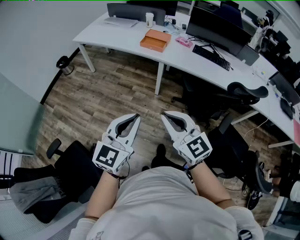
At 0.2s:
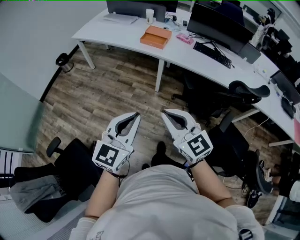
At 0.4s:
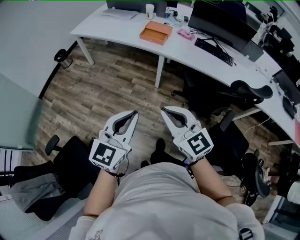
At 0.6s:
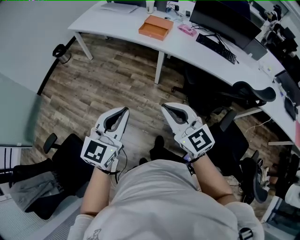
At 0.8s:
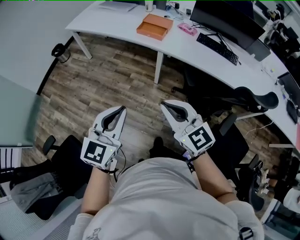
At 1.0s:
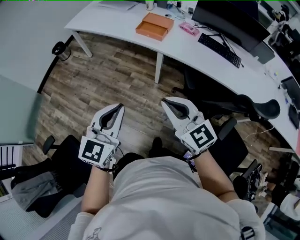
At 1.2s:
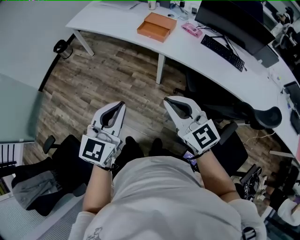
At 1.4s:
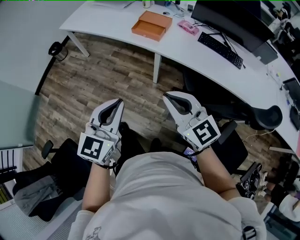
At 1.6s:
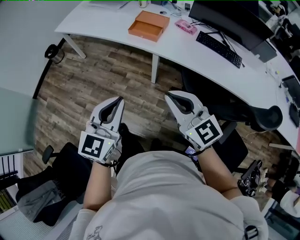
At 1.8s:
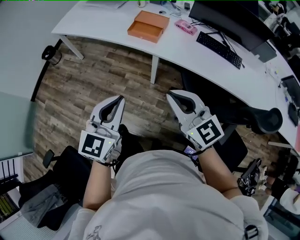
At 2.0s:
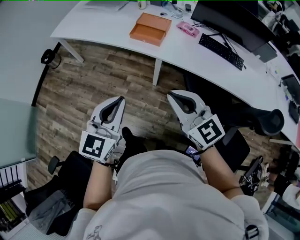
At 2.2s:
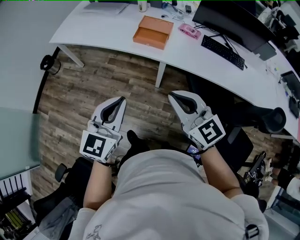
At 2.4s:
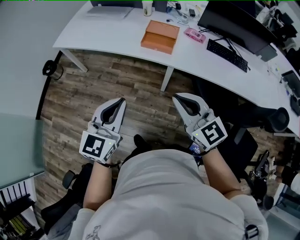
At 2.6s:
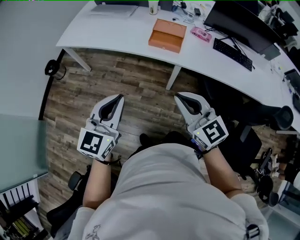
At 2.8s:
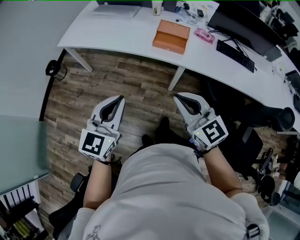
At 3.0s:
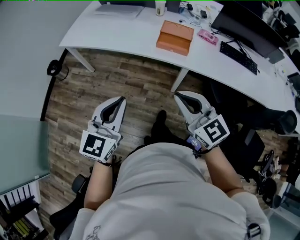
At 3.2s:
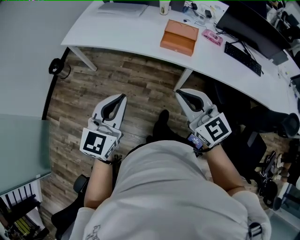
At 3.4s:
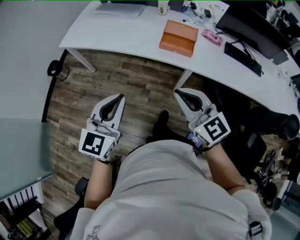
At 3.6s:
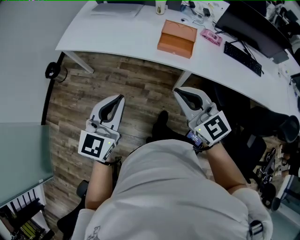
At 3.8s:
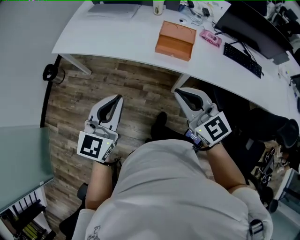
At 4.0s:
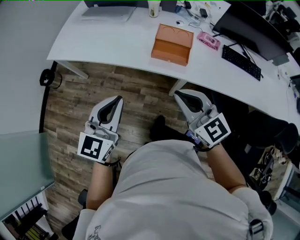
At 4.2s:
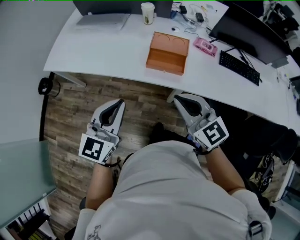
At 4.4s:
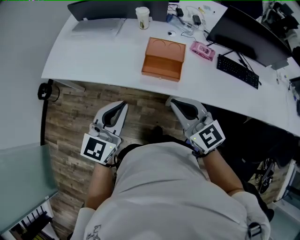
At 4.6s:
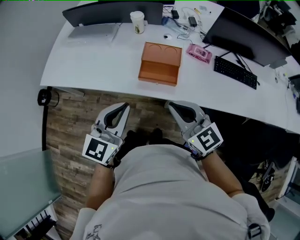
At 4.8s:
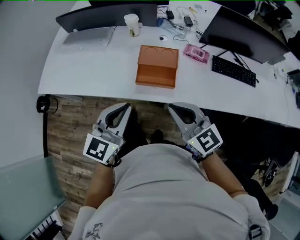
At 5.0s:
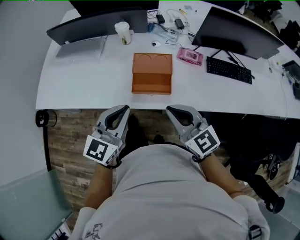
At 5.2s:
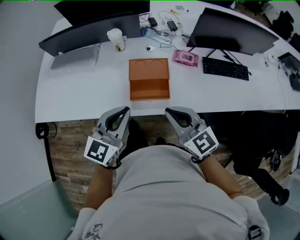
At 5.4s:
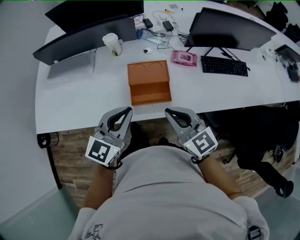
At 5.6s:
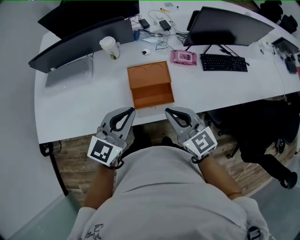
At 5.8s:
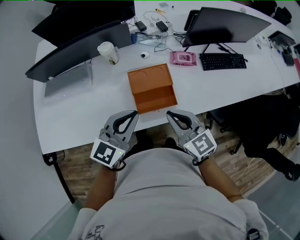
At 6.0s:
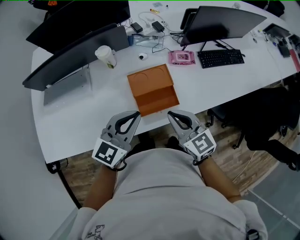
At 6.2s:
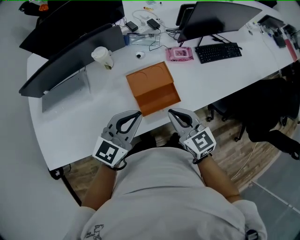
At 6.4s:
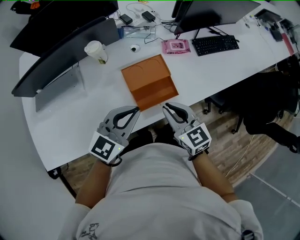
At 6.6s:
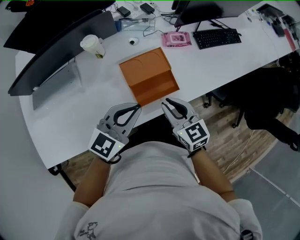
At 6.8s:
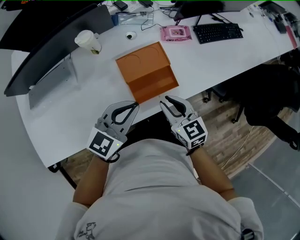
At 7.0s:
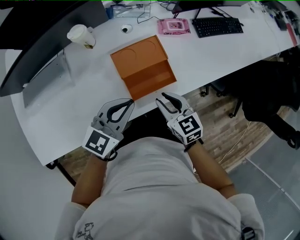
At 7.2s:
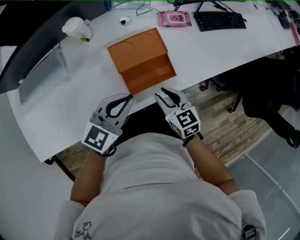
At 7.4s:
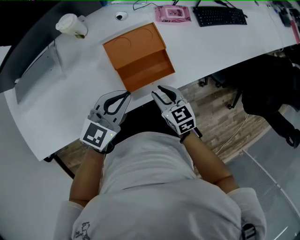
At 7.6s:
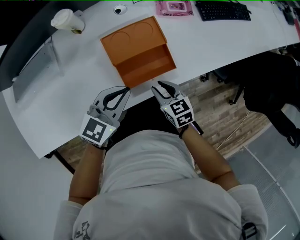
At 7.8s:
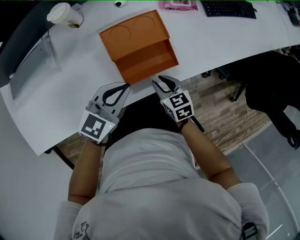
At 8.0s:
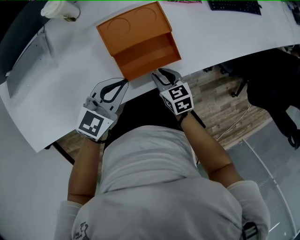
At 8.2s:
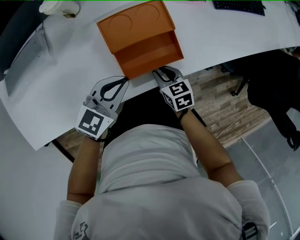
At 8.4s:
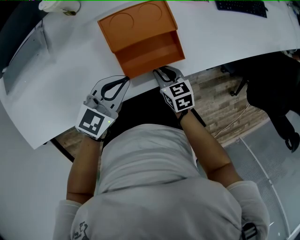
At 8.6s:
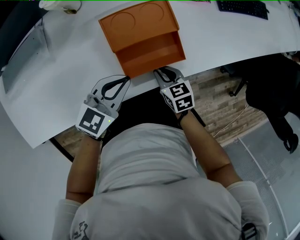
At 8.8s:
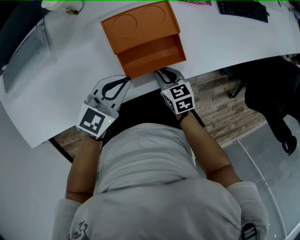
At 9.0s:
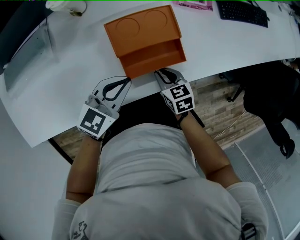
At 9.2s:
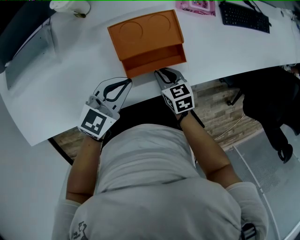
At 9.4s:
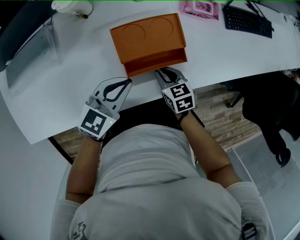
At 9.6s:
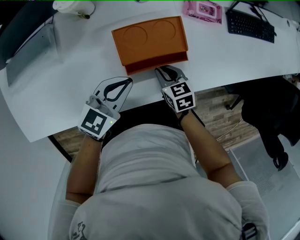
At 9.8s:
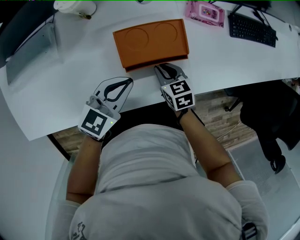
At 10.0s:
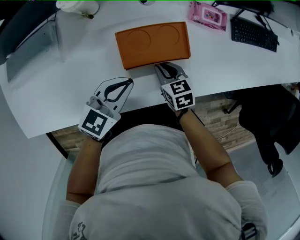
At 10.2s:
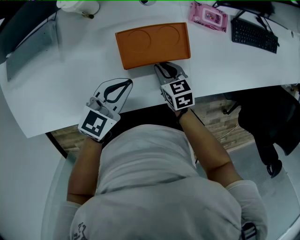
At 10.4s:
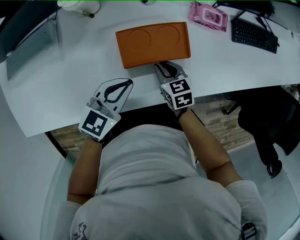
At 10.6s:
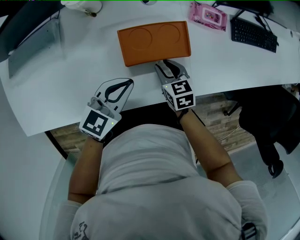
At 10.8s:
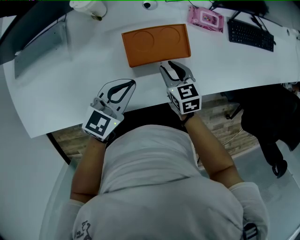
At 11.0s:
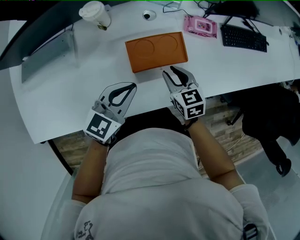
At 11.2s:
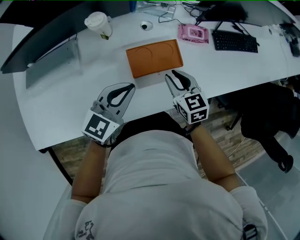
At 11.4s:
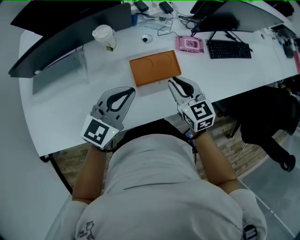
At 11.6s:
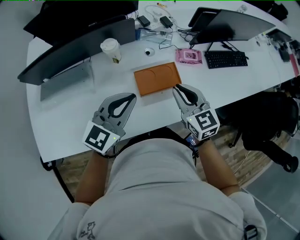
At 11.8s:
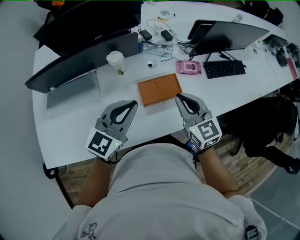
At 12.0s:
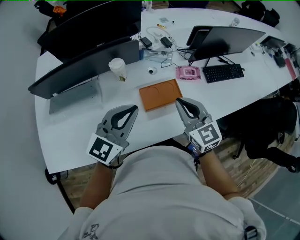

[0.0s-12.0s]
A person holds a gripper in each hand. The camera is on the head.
0.0s to 1.6s: The left gripper heads forward, covering some 30 cm. Meanwhile the right gripper goes roughly 35 cm forward and to the right.
1.6s to 3.0s: The two grippers go some 30 cm to the left and forward.
3.0s to 4.4s: The left gripper travels forward and to the right by about 30 cm, while the right gripper goes about 25 cm forward.
4.4s to 6.0s: The right gripper changes place by about 20 cm, and swivels about 30 degrees. Meanwhile the left gripper changes place by some 25 cm, and turns by roughly 40 degrees.
6.0s to 7.6s: The grippers both shift downward by about 20 cm. The right gripper swivels about 30 degrees, and opens.
7.6s to 9.0s: The grippers both shift downward by about 5 cm.
9.0s to 10.4s: The left gripper shifts some 5 cm forward. The right gripper travels forward by some 10 cm.
10.4s to 12.0s: The grippers both shift upward by some 35 cm. The right gripper angles its fingers upward, by about 40 degrees. Meanwhile the left gripper changes its angle by approximately 30 degrees.

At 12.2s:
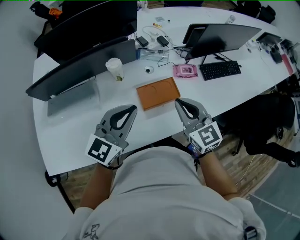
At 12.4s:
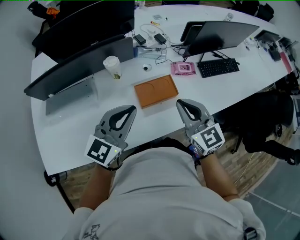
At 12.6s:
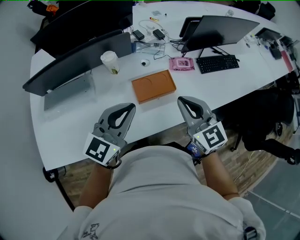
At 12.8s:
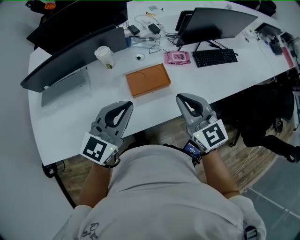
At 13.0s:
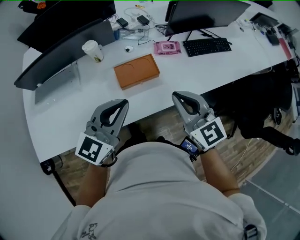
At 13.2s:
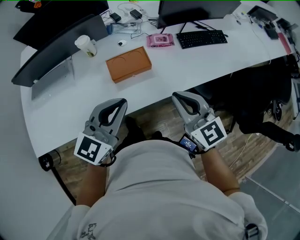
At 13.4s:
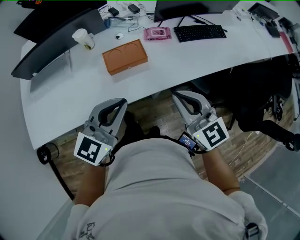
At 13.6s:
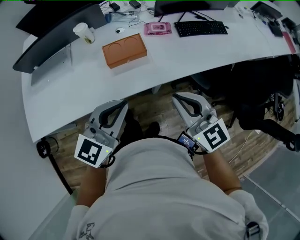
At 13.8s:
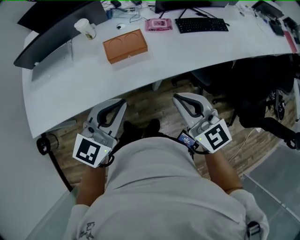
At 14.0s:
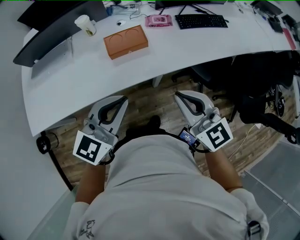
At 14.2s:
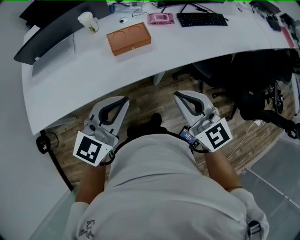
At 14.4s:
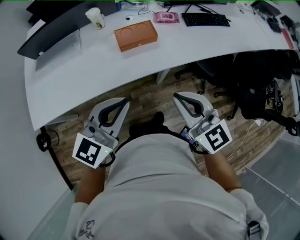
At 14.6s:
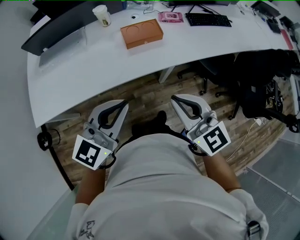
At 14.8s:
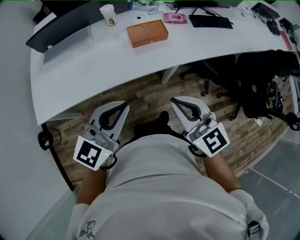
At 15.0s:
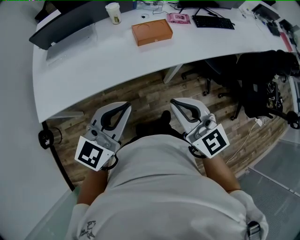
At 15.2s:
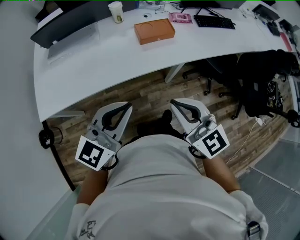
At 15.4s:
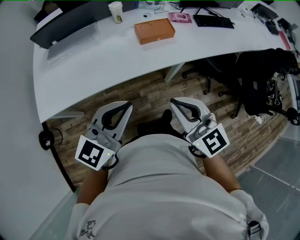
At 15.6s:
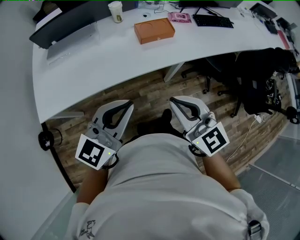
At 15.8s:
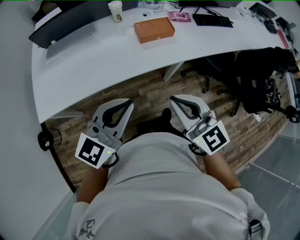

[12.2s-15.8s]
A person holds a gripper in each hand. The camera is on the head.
12.2s to 14.0s: Both grippers travel together backward and to the right, some 30 cm.
14.0s to 15.8s: Both grippers move to the left and backward, about 30 cm.

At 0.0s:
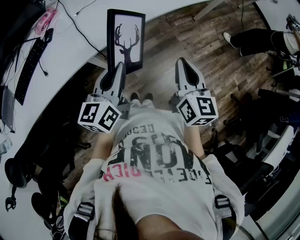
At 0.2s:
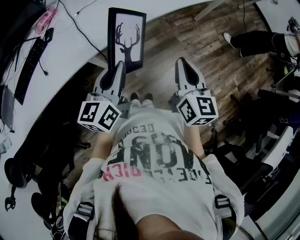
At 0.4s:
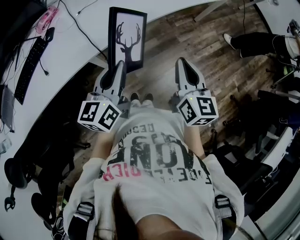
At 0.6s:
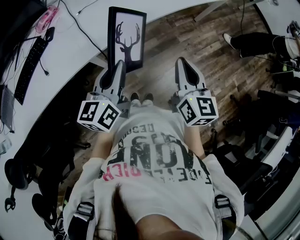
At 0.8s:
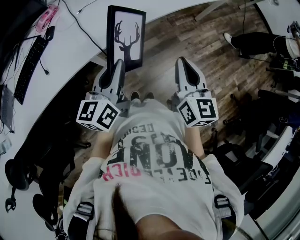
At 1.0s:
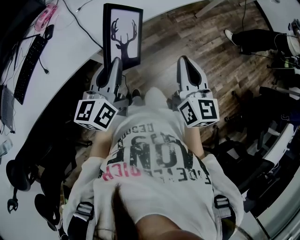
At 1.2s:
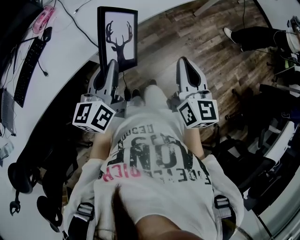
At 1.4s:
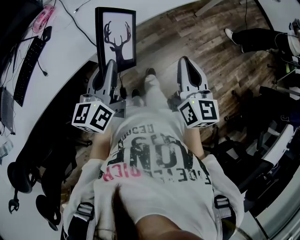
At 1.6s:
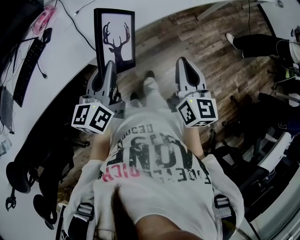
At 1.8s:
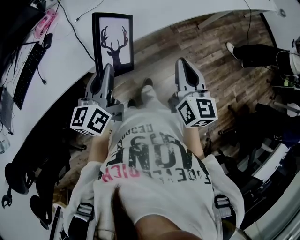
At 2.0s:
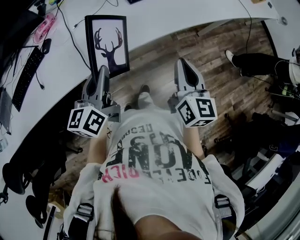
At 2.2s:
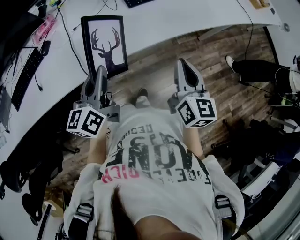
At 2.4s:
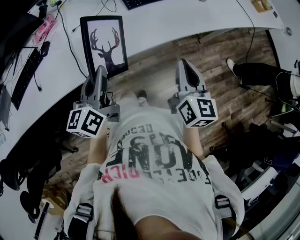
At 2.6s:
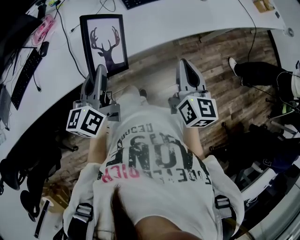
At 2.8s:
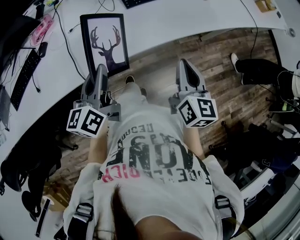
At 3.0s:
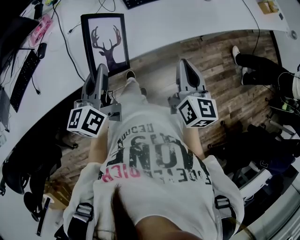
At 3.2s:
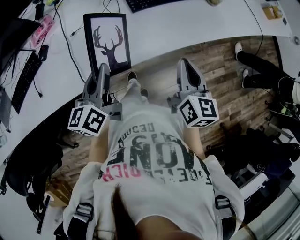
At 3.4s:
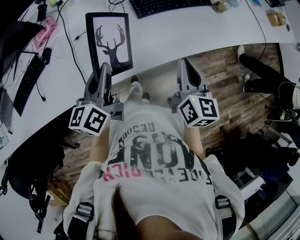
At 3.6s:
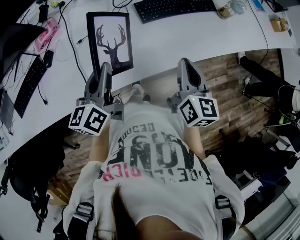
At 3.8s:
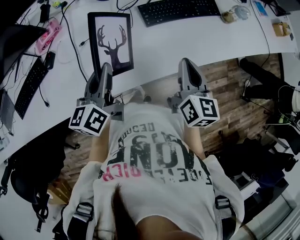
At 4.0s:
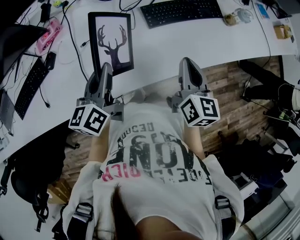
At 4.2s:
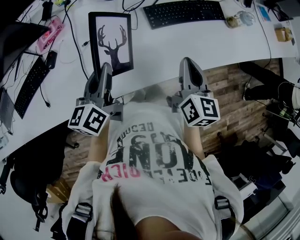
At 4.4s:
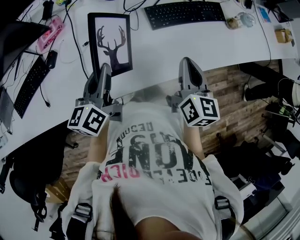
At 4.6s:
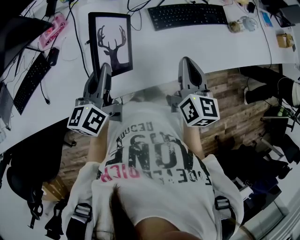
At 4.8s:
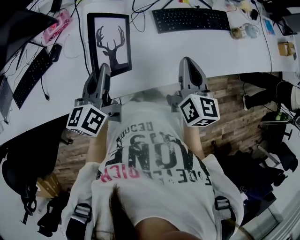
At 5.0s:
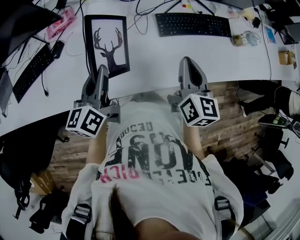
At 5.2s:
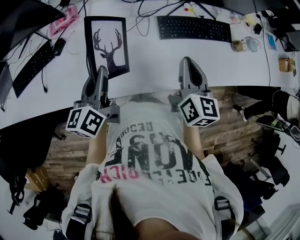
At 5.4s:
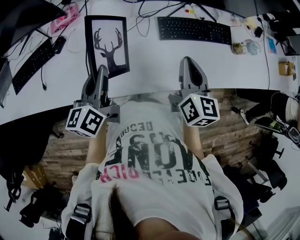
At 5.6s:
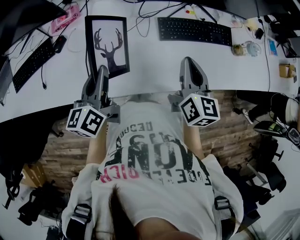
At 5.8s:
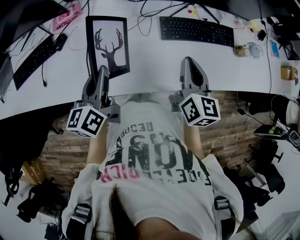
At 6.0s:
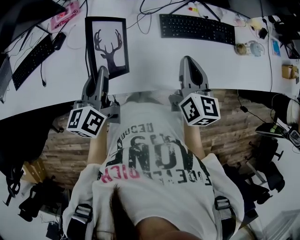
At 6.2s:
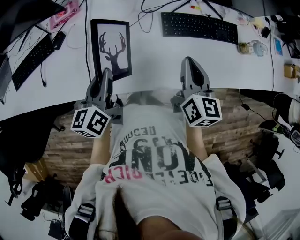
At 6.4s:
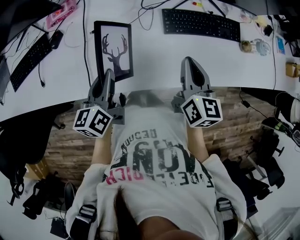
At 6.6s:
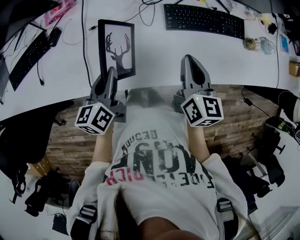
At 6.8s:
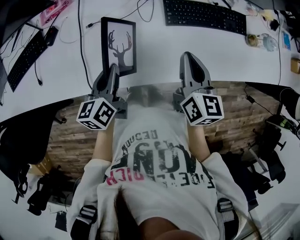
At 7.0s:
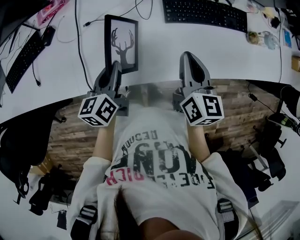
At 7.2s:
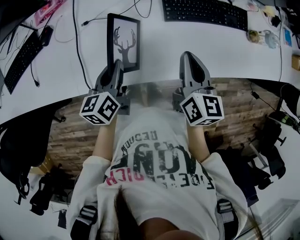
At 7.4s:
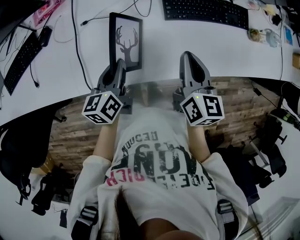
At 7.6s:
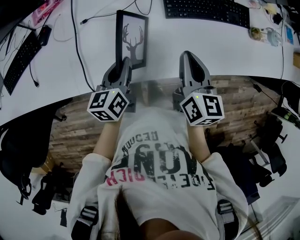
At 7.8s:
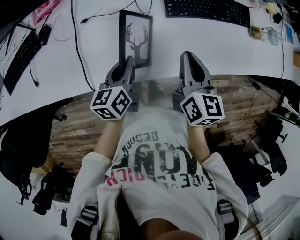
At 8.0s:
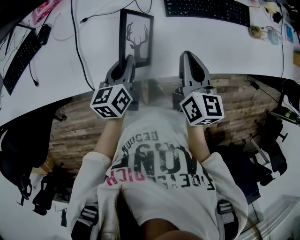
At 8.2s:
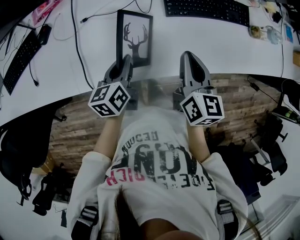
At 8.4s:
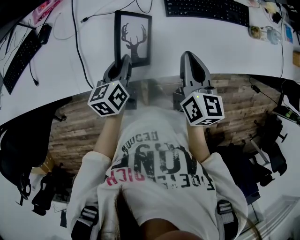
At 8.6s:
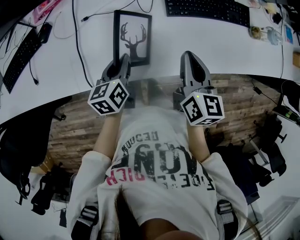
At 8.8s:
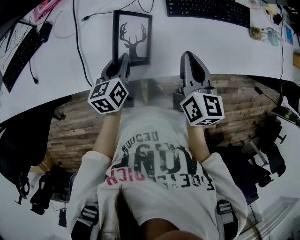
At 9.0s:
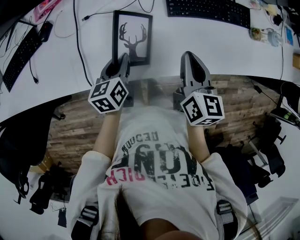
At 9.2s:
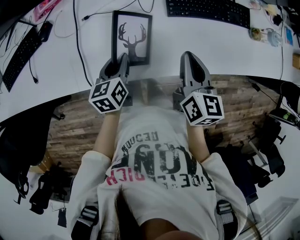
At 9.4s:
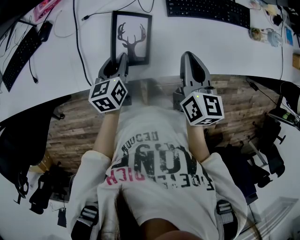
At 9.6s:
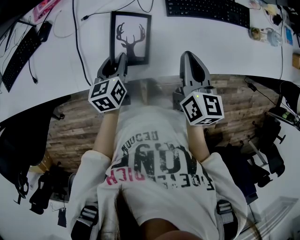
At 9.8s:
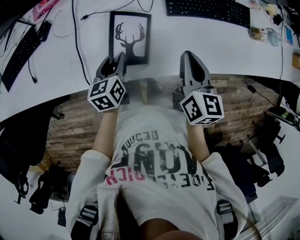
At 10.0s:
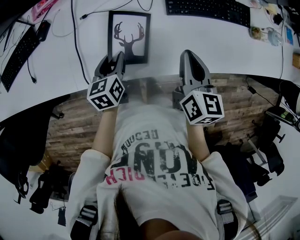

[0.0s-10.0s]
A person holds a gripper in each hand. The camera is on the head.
0.0s to 1.4s: There are only small adjustments of the grippers.
1.4s to 2.8s: The left gripper shifts some 15 cm forward; the right gripper heads forward and to the right, covering some 20 cm.
2.8s to 4.2s: The two grippers go approximately 15 cm forward and to the left.
4.2s to 5.8s: The right gripper is displaced forward by approximately 5 cm.
5.8s to 7.2s: The left gripper goes some 10 cm downward. Meanwhile the right gripper heads downward, covering about 5 cm.
7.2s to 8.6s: There are only small adjustments of the grippers.
8.6s to 10.0s: The left gripper opens.
